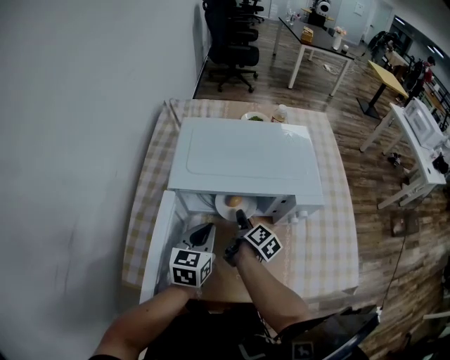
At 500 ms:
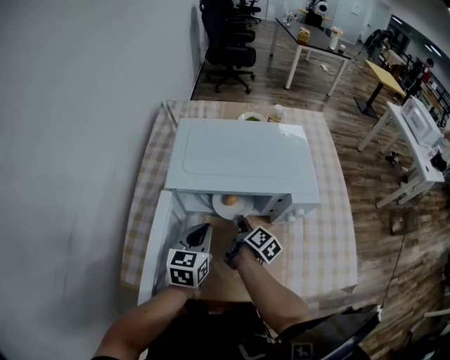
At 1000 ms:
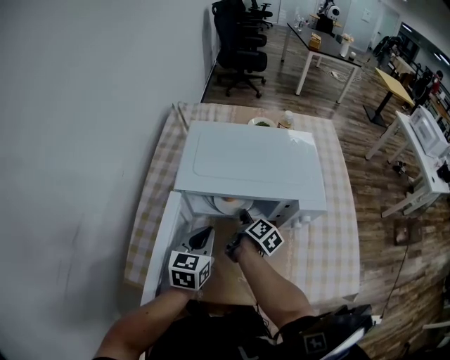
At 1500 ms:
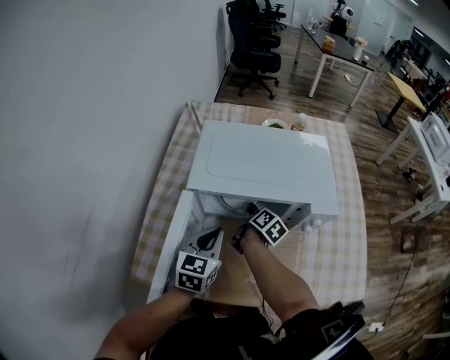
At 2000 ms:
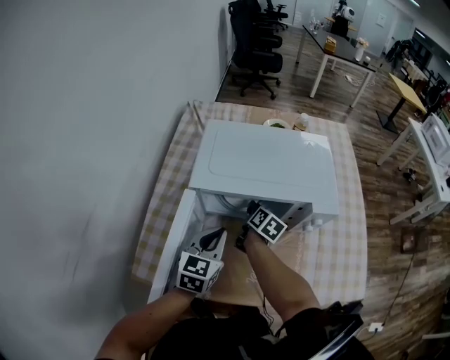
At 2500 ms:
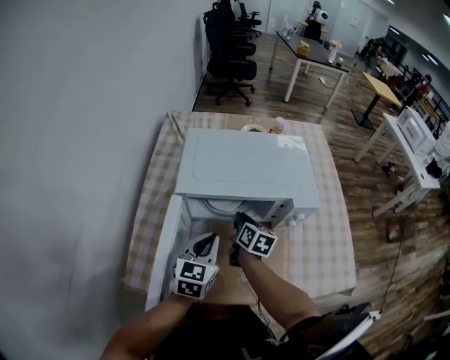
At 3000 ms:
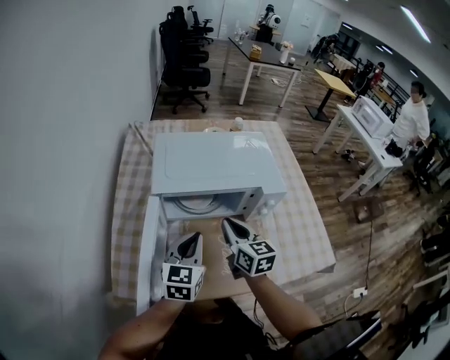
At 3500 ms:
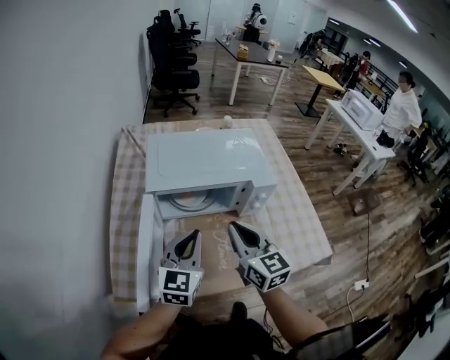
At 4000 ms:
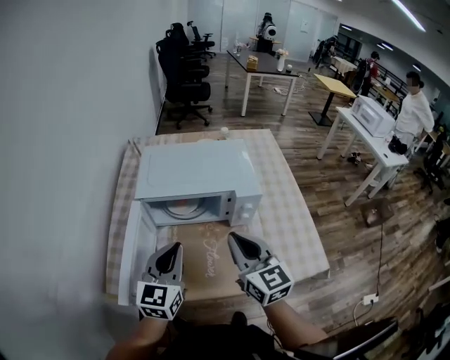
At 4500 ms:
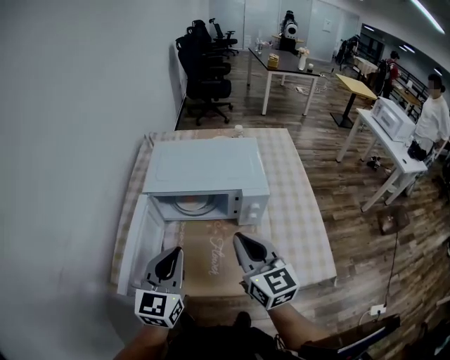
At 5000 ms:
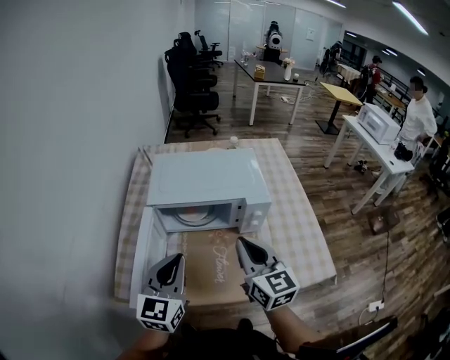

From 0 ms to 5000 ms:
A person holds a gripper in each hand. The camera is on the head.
From 0 ms to 2500 ms: The right gripper heads upward, covering approximately 5 cm, changes its angle by roughly 30 degrees, and closes up.
From 2500 ms to 5000 ms: The right gripper heads upward and backward, covering roughly 30 cm, and changes its angle by some 40 degrees. Meanwhile the left gripper moves upward and backward, about 20 cm.

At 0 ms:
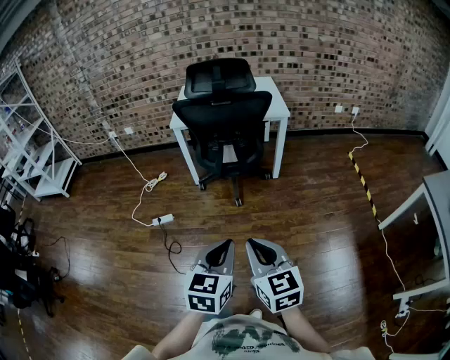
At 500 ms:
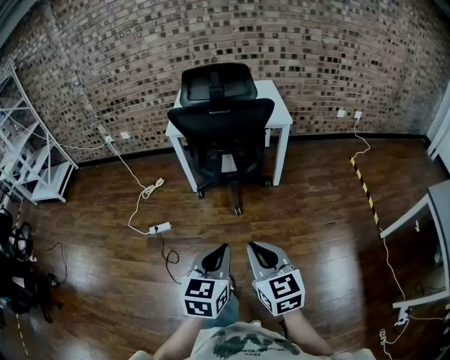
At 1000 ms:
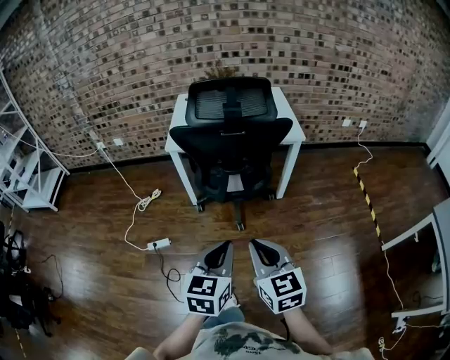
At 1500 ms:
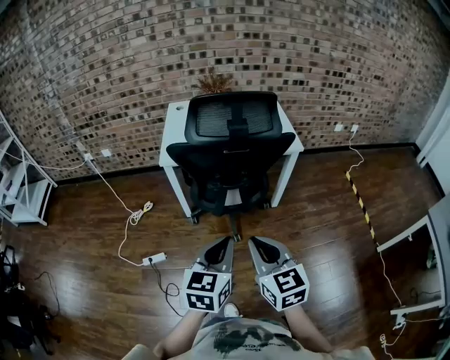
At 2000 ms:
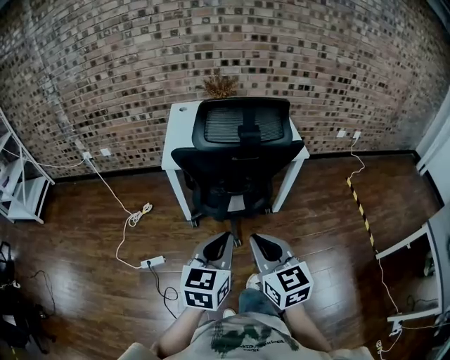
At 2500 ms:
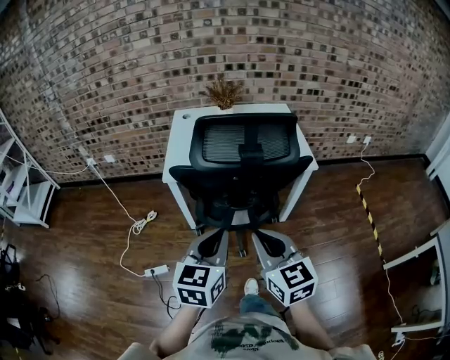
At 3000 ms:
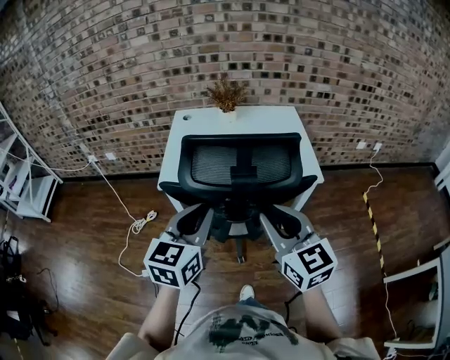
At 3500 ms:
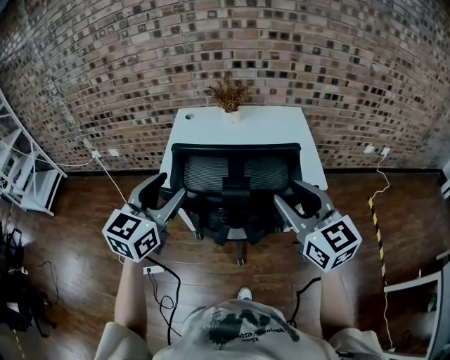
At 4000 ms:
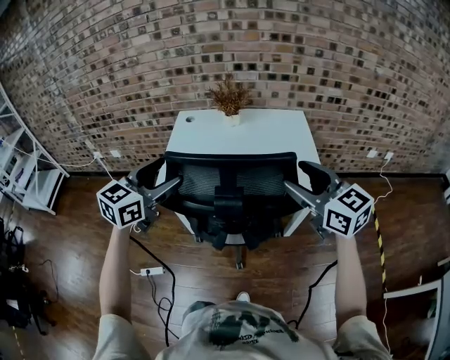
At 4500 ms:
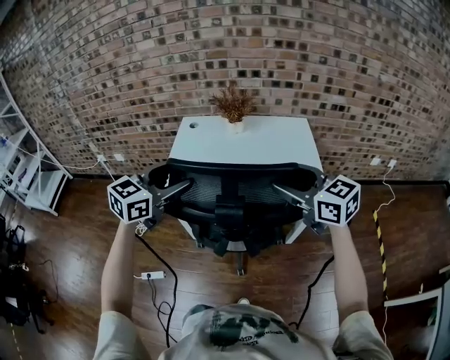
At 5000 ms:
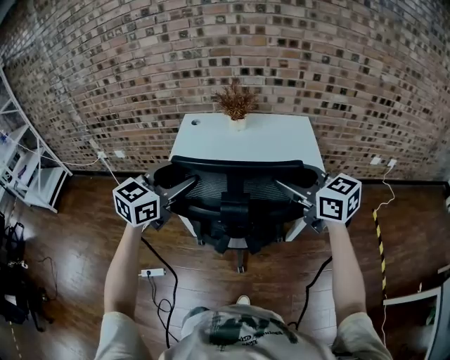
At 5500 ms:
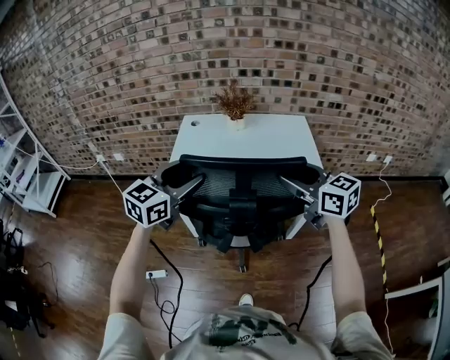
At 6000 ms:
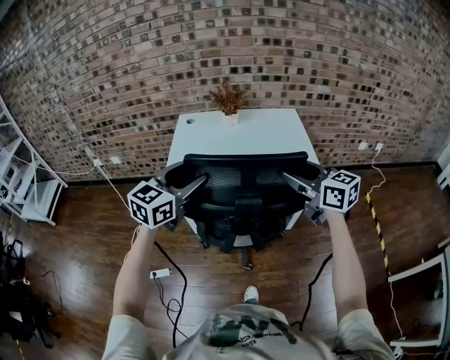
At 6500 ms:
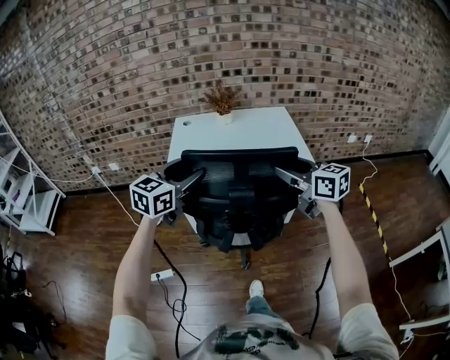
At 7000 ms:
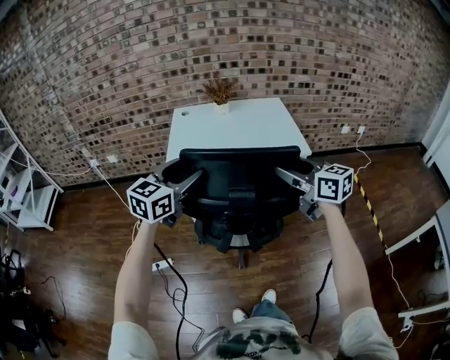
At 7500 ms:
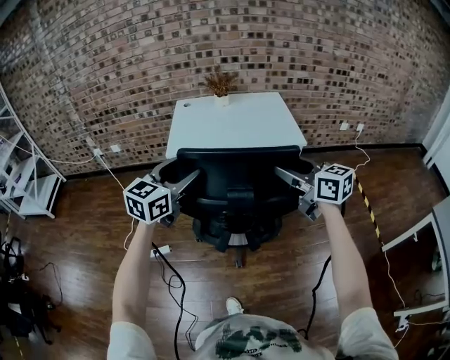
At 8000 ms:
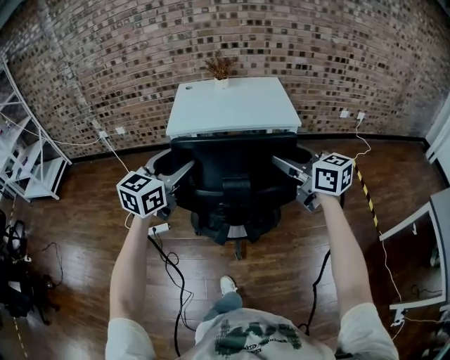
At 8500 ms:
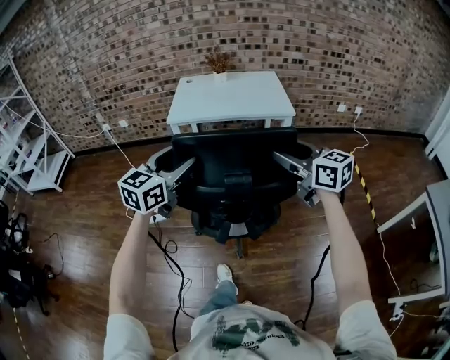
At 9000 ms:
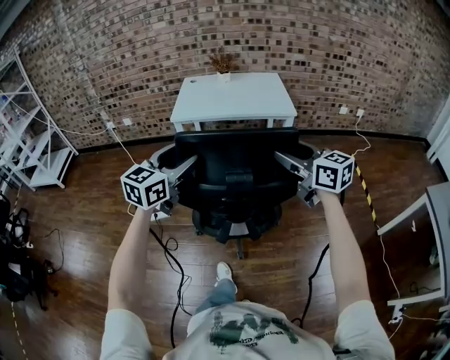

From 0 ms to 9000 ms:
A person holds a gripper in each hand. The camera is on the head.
From 0 ms to 2000 ms: The grippers both shift forward by roughly 35 cm.
From 2000 ms to 4500 ms: Both grippers travel together forward, about 35 cm. The right gripper swivels roughly 30 degrees, and opens up. Meanwhile the left gripper opens.
From 4500 ms to 7000 ms: The grippers both shift backward by roughly 20 cm.
From 7000 ms to 9000 ms: The grippers both shift backward by approximately 30 cm.

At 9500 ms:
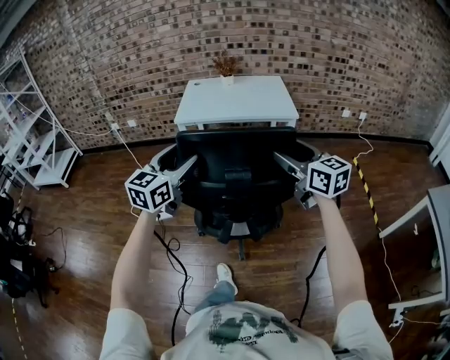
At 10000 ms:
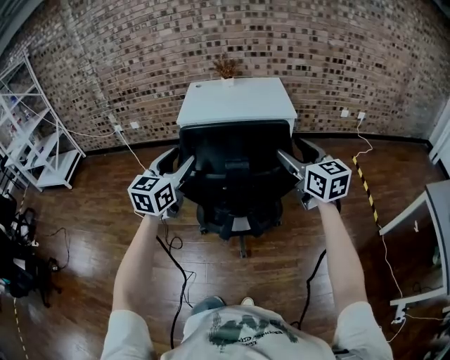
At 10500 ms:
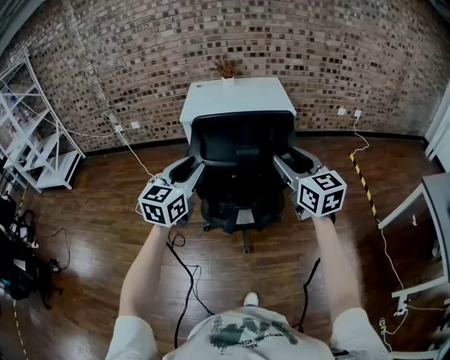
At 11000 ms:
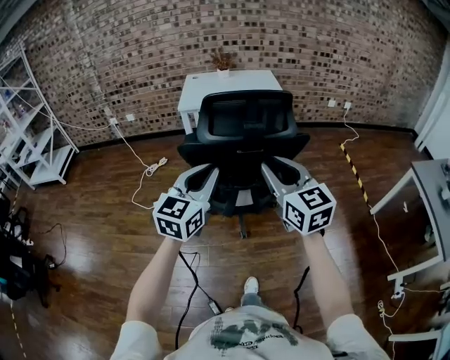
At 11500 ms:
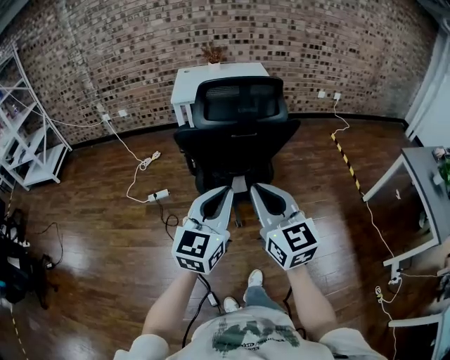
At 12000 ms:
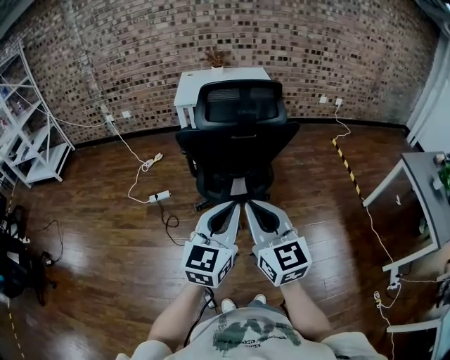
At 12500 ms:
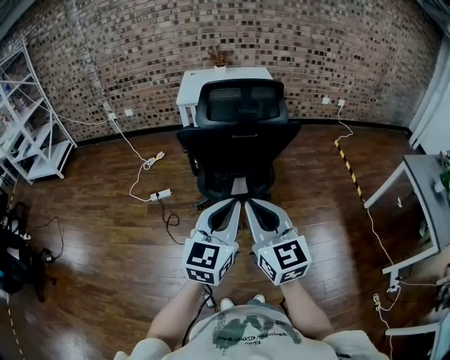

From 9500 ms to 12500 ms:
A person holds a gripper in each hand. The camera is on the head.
From 9500 ms to 11000 ms: The right gripper goes approximately 25 cm backward and to the left, and closes its fingers. The left gripper shifts about 25 cm backward, and closes.
From 11000 ms to 12500 ms: The left gripper travels backward and to the right by approximately 15 cm. The right gripper is displaced backward by about 15 cm.

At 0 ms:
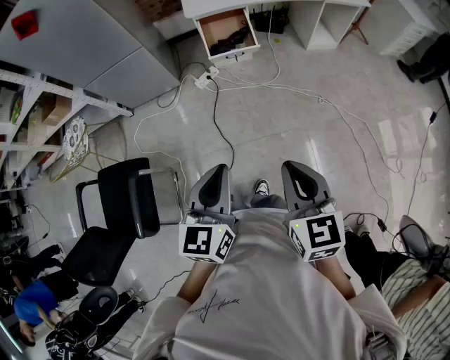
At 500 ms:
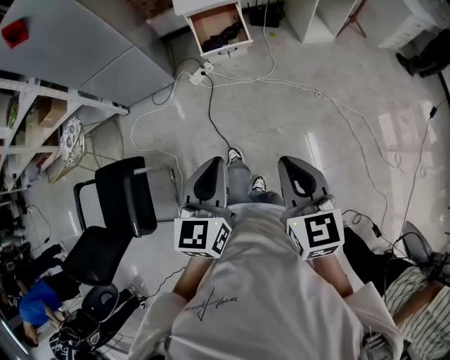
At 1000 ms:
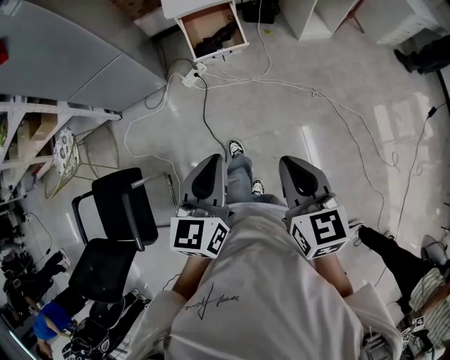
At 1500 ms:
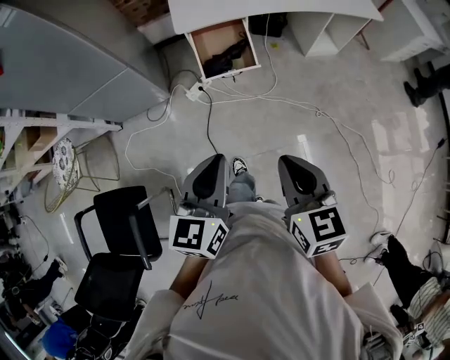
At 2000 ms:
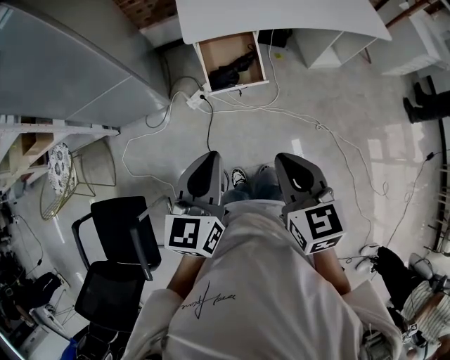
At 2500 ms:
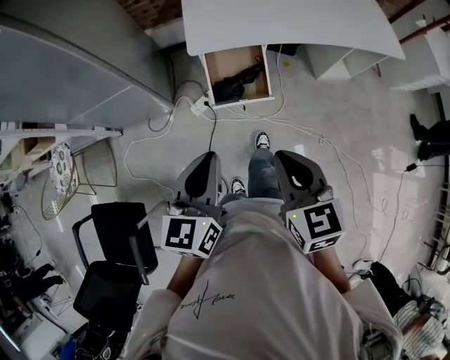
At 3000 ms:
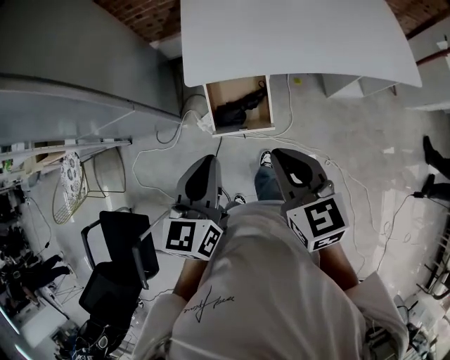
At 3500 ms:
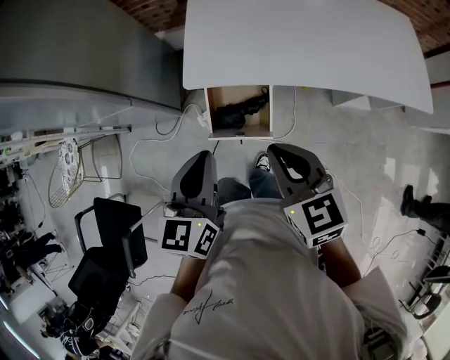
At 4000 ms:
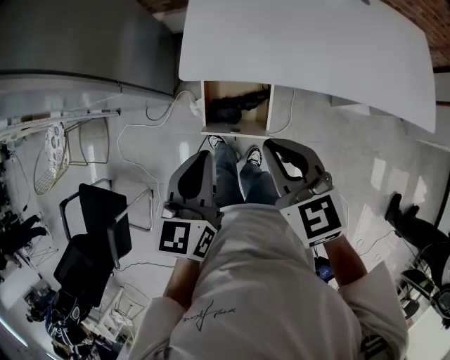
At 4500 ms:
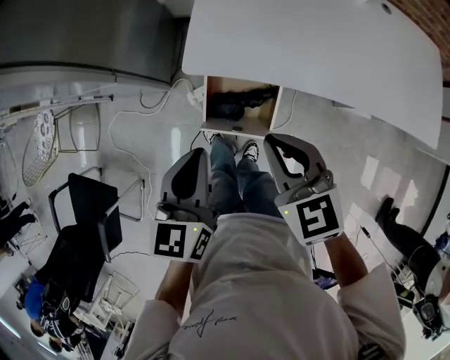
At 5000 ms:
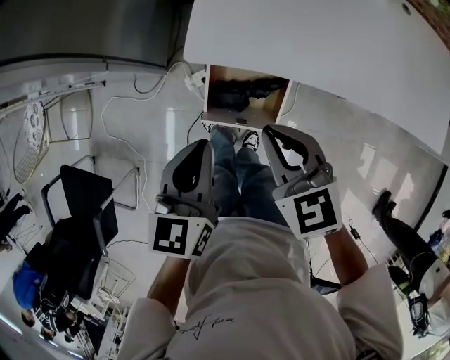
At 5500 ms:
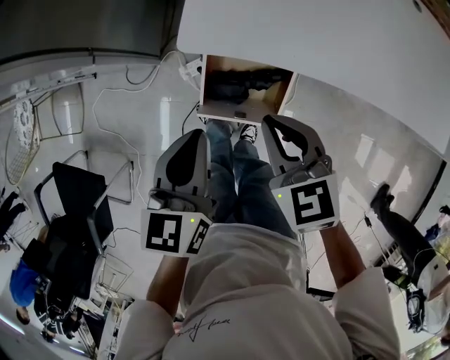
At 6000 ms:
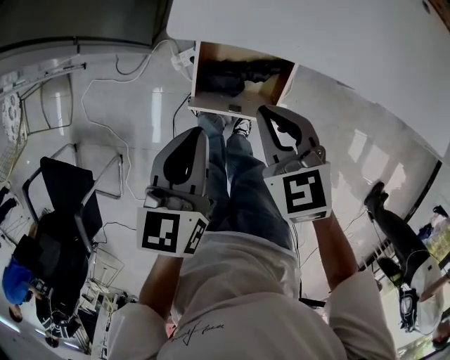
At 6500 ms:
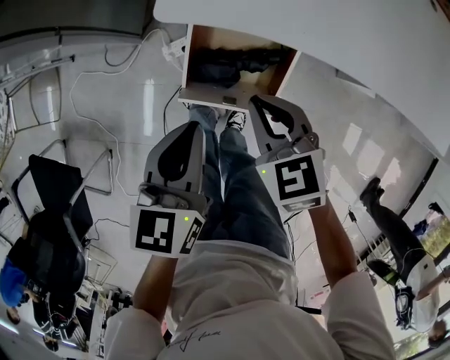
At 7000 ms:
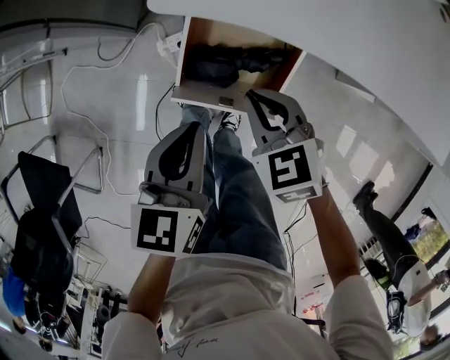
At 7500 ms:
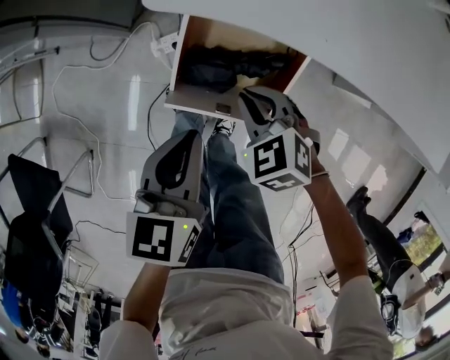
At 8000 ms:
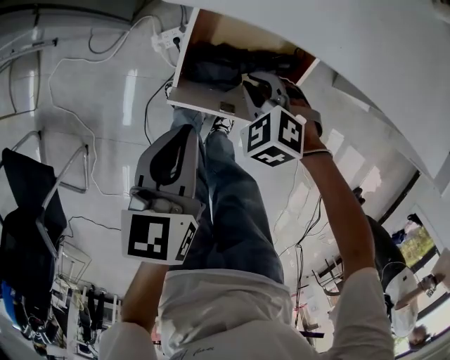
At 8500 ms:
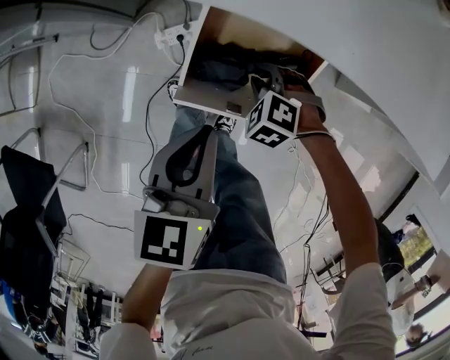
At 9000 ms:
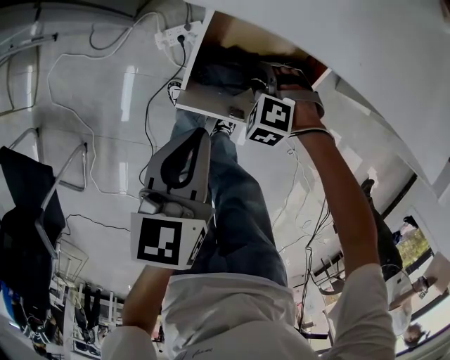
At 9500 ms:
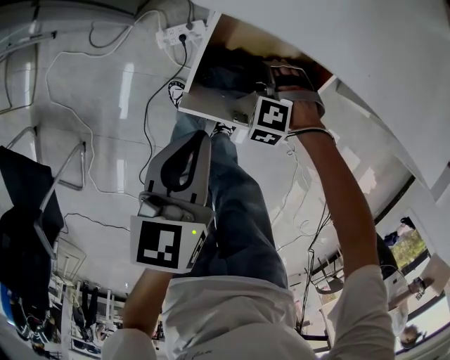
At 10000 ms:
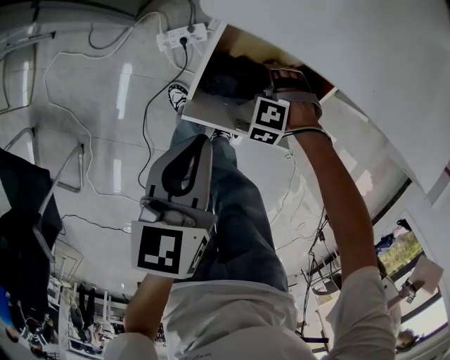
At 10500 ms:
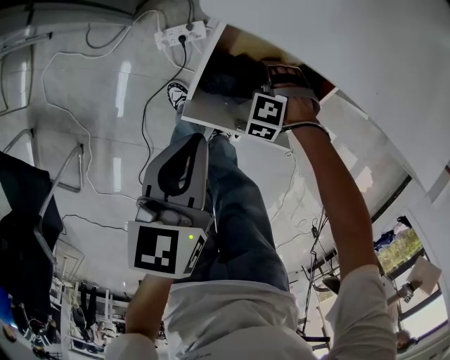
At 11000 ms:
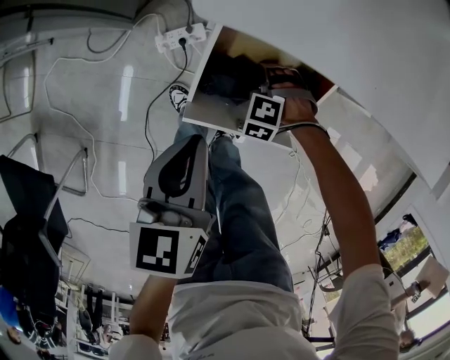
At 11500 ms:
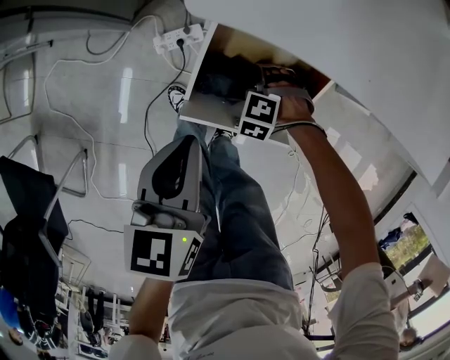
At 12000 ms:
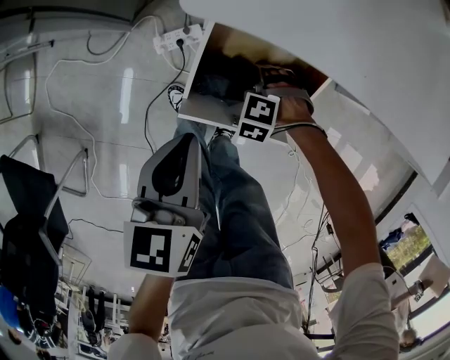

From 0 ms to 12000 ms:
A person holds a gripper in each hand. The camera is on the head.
From 0 ms to 2000 ms: The two grippers go roughly 30 cm forward.
From 2000 ms to 4000 ms: The right gripper heads forward, covering about 35 cm, and swivels approximately 30 degrees. The left gripper heads forward and to the right, covering some 30 cm.
From 4000 ms to 6000 ms: The grippers both shift downward and forward by approximately 20 cm.
From 6000 ms to 8000 ms: The left gripper shifts about 10 cm downward; the right gripper shifts some 20 cm downward, and changes its angle by roughly 40 degrees.
From 8000 ms to 10000 ms: The right gripper goes roughly 15 cm downward, turns by some 40 degrees, and opens its fingers.
From 10000 ms to 12000 ms: There are only small adjustments of the grippers.
